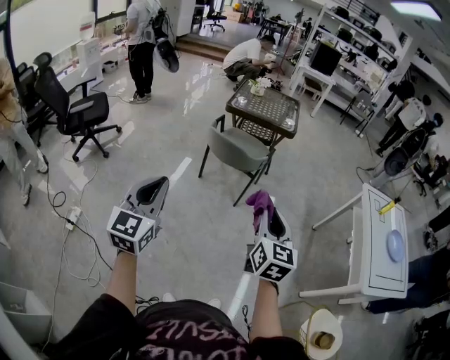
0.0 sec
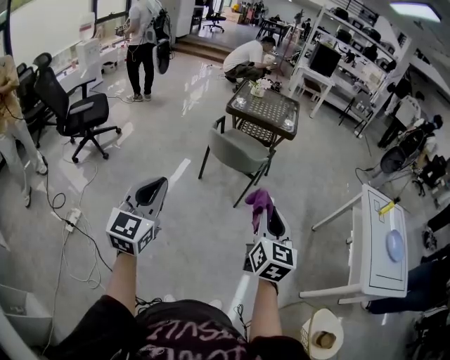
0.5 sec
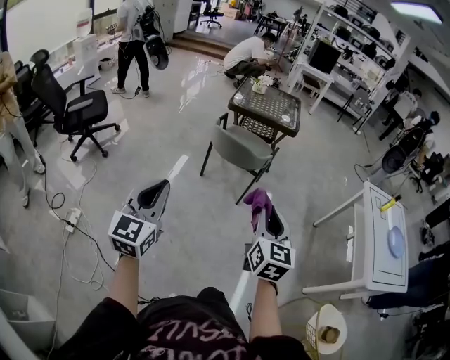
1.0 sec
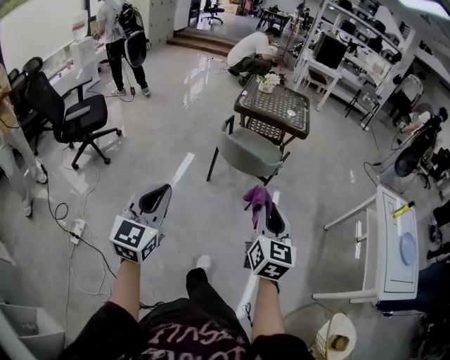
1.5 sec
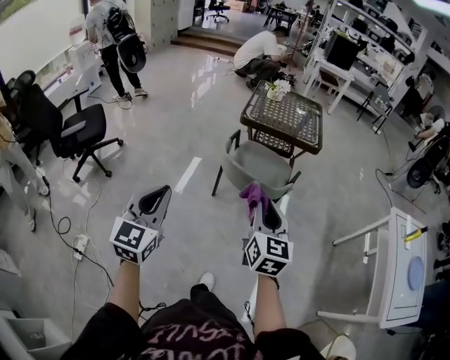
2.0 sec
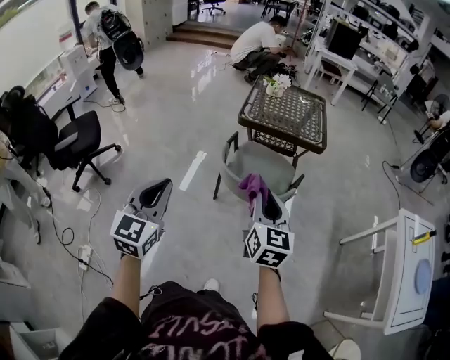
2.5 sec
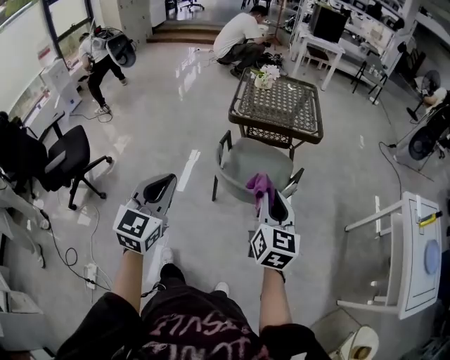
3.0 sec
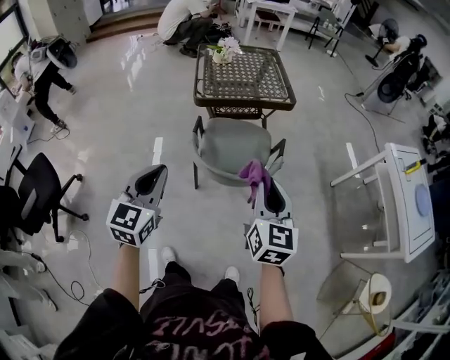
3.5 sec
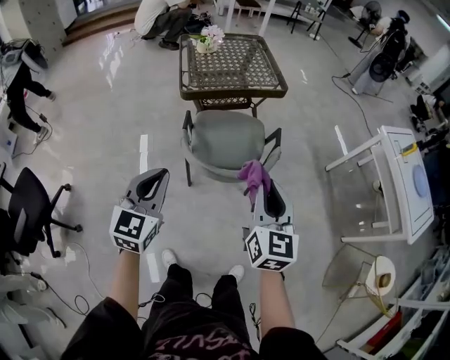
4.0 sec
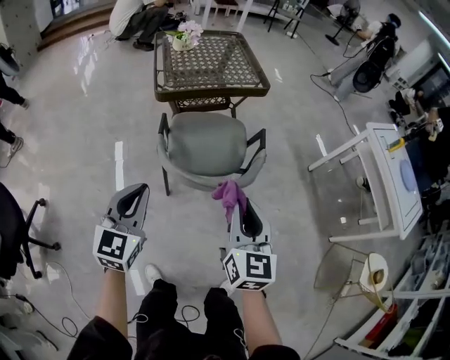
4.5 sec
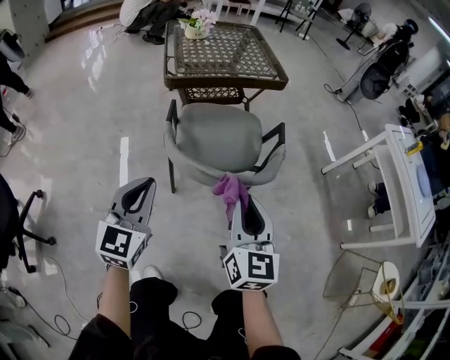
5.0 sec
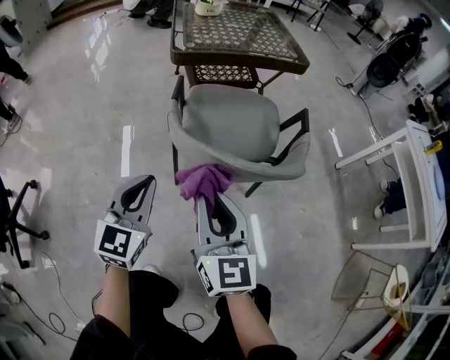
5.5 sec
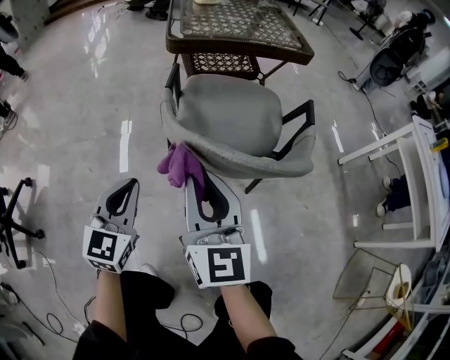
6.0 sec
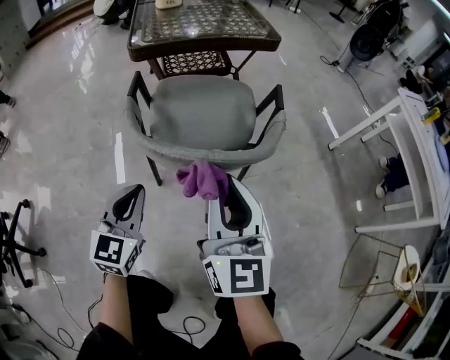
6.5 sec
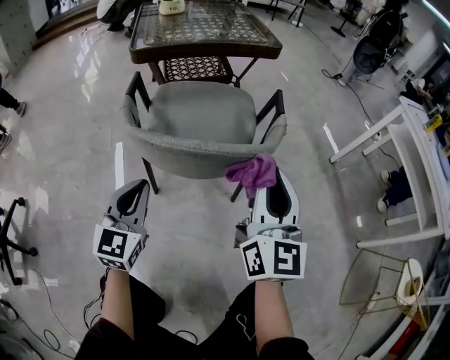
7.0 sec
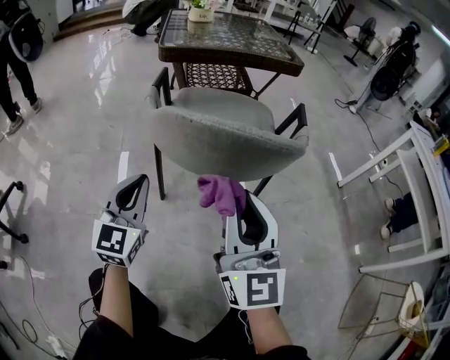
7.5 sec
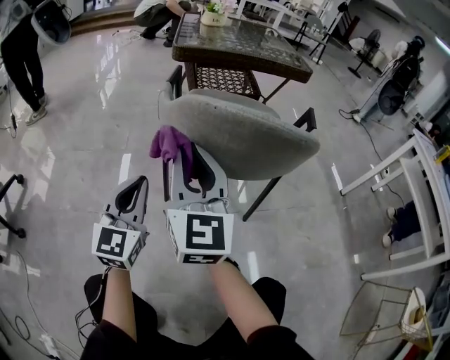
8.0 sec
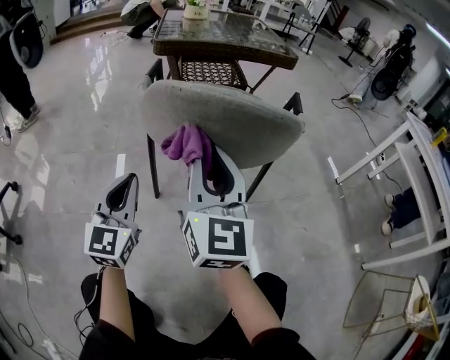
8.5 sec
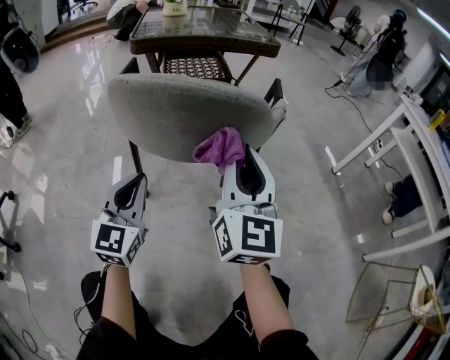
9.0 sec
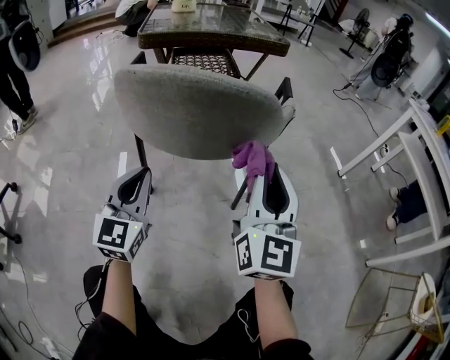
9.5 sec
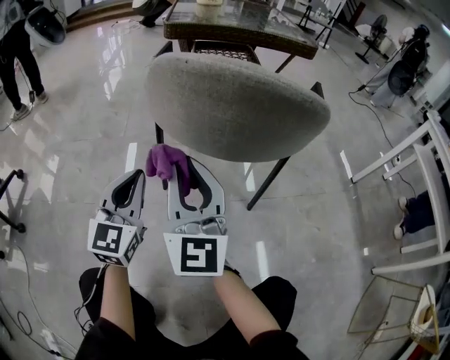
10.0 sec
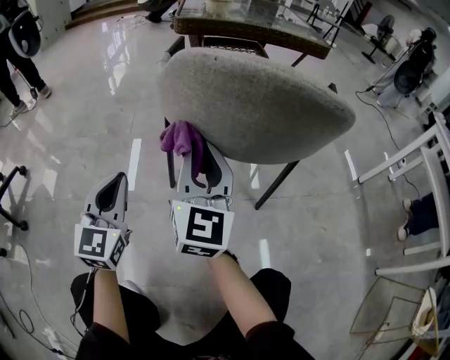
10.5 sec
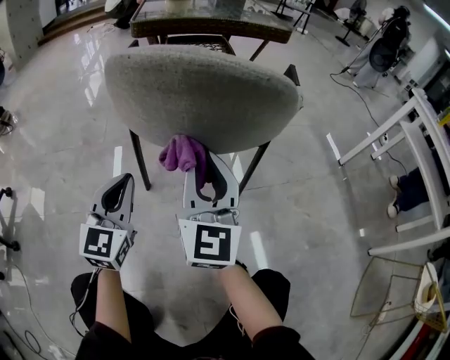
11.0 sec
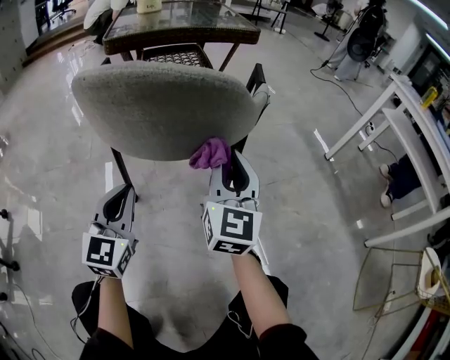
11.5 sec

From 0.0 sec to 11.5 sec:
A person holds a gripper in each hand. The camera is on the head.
From 0.0 sec to 2.0 sec: The grippers both shift forward and to the left by some 30 cm.
From 2.0 sec to 4.0 sec: The right gripper ends up approximately 20 cm from where it was, and swivels roughly 30 degrees. The left gripper moves about 35 cm, and rotates roughly 30 degrees.
From 4.0 sec to 6.0 sec: The right gripper moves downward and to the left, about 35 cm; the left gripper moves downward, approximately 35 cm.
From 6.0 sec to 7.5 sec: The left gripper is displaced to the right and downward by roughly 10 cm. Meanwhile the right gripper is displaced to the right by some 15 cm.
From 7.5 sec to 9.5 sec: The right gripper heads to the right and downward, covering some 15 cm, while the left gripper goes about 10 cm to the right and downward.
From 9.5 sec to 11.5 sec: The right gripper travels downward and forward by roughly 10 cm, and travels to the left and back again, about 25 cm each way; the left gripper travels to the left and back again, approximately 15 cm each way.

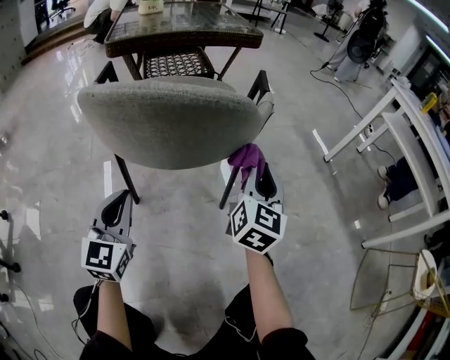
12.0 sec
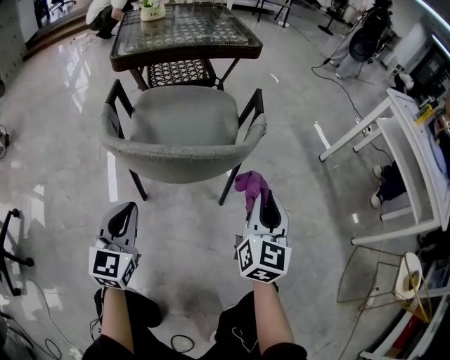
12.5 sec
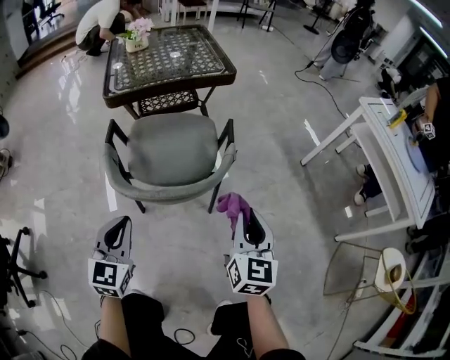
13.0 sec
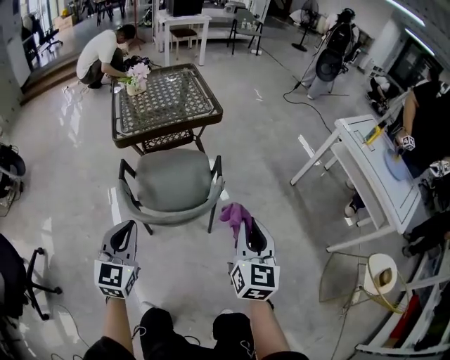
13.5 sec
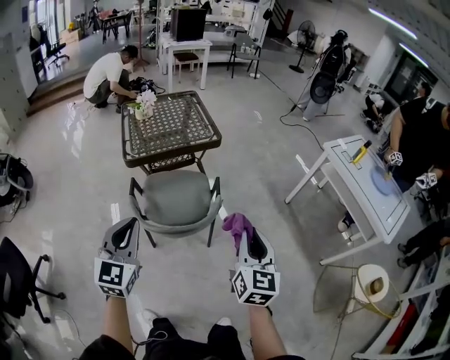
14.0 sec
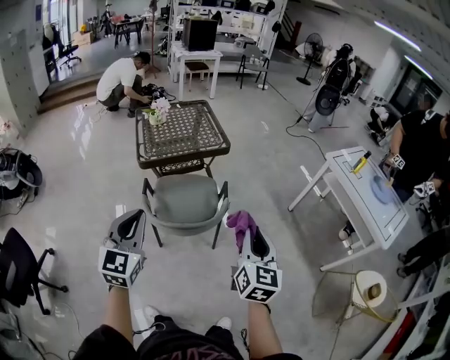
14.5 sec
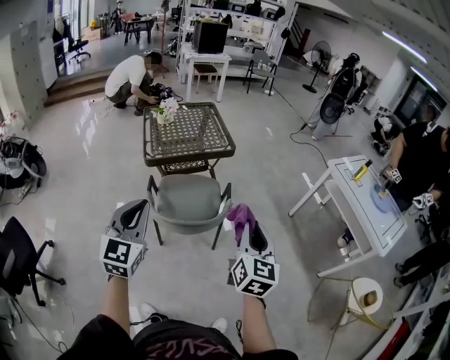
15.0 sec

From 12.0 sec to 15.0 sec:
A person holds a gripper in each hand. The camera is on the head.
From 12.0 sec to 13.5 sec: Both grippers move upward, approximately 40 cm.
From 13.5 sec to 15.0 sec: The right gripper travels upward and backward by about 20 cm. The left gripper moves upward, about 20 cm.

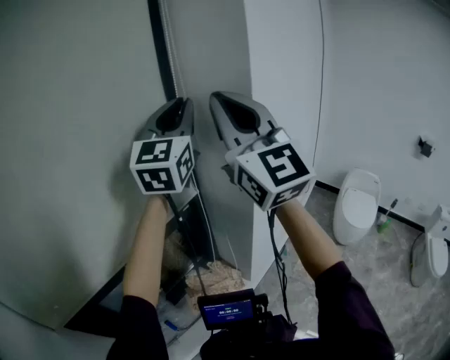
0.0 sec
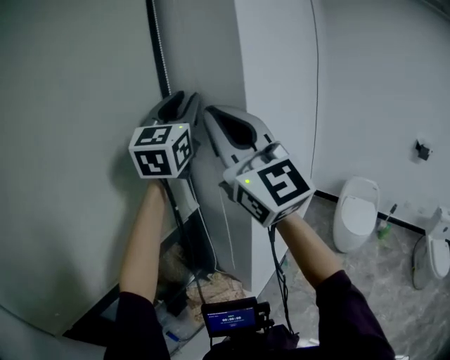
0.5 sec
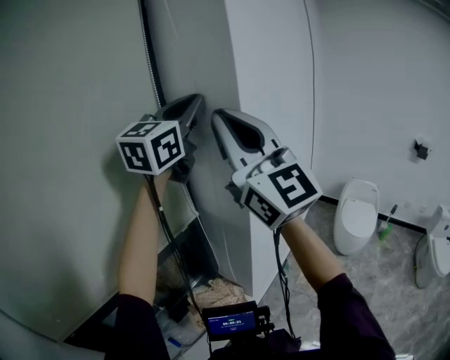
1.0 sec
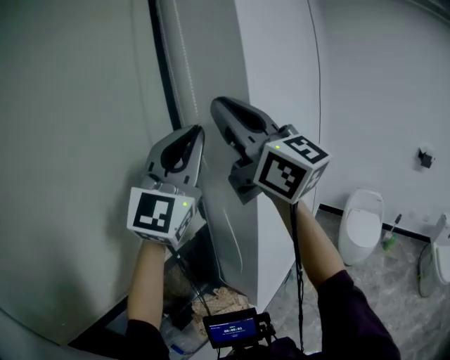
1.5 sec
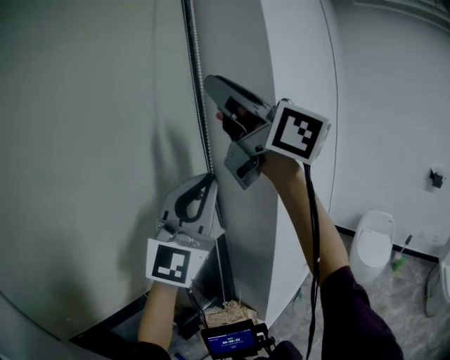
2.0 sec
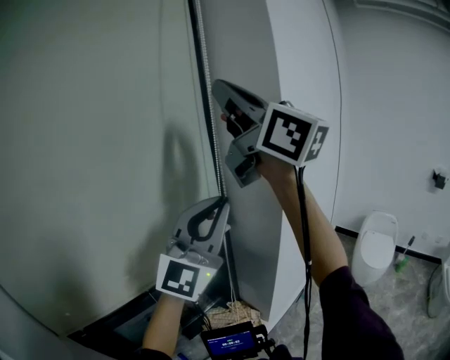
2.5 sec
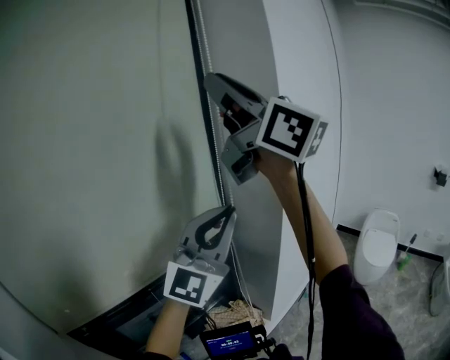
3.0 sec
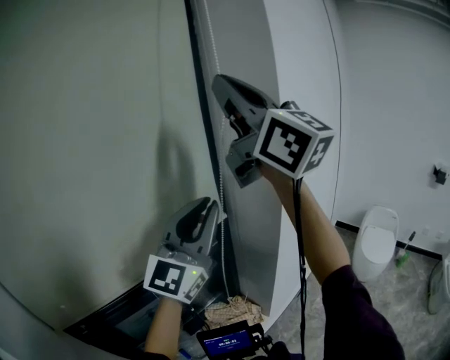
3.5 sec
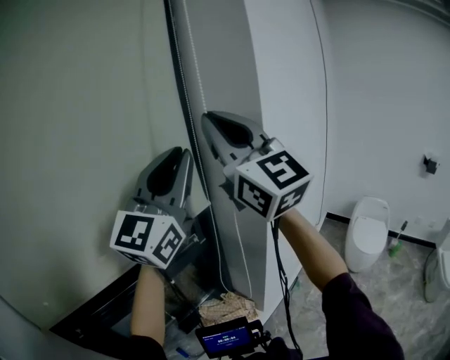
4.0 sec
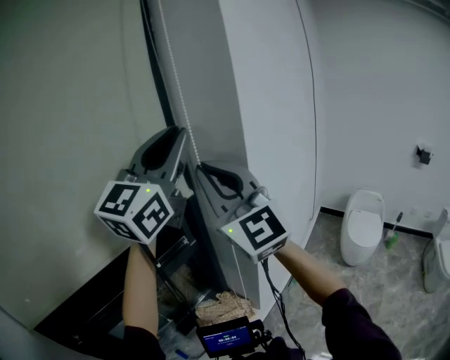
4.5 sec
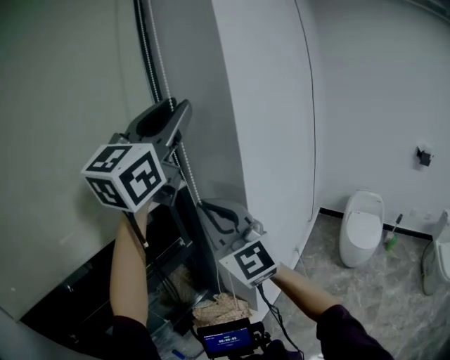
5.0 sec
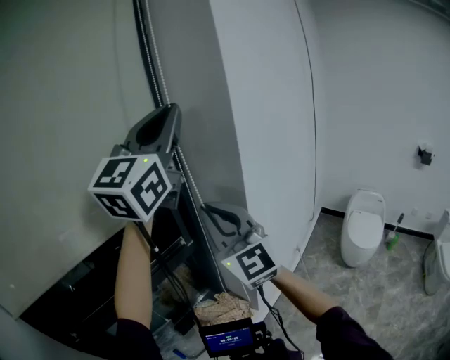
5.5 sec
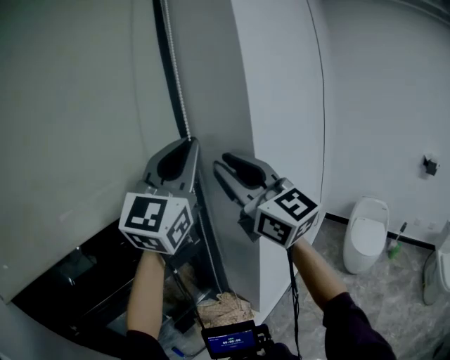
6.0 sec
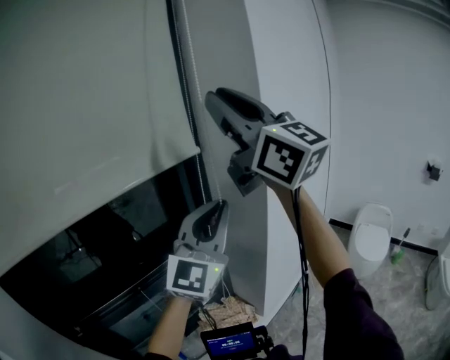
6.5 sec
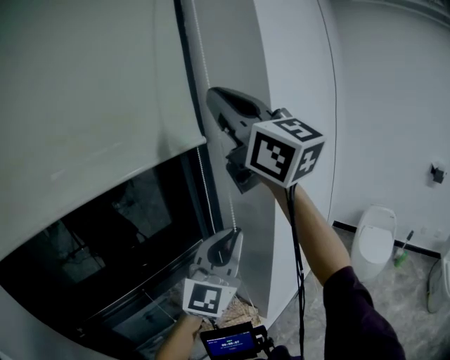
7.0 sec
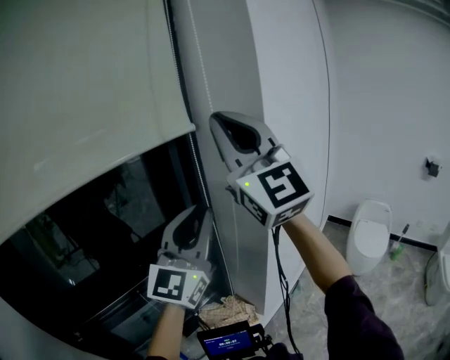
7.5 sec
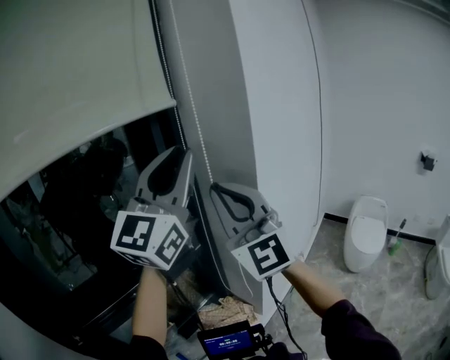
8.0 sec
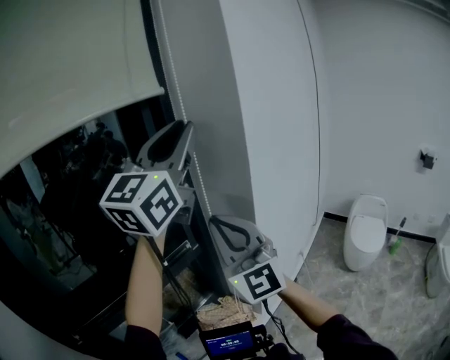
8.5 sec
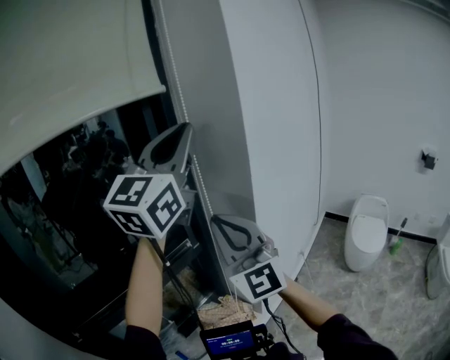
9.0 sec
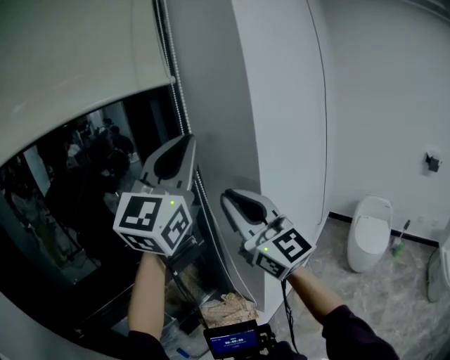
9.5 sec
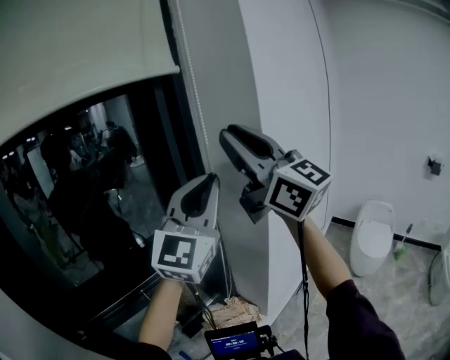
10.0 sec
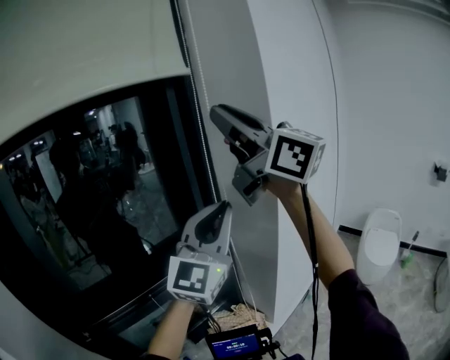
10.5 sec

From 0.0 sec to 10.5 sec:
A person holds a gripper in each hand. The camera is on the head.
From 0.0 sec to 2.0 sec: The right gripper is displaced upward and to the left by some 15 cm, and rotates roughly 40 degrees. Meanwhile the left gripper shifts some 15 cm backward, and changes its angle by approximately 20 degrees.
From 2.0 sec to 4.0 sec: The right gripper heads downward, covering some 5 cm, and swivels approximately 30 degrees, while the left gripper moves upward, some 5 cm.
From 4.0 sec to 6.5 sec: The left gripper moves downward and to the right, some 10 cm; the right gripper reaches approximately 20 cm downward, then returns.
From 6.5 sec to 8.5 sec: The left gripper heads upward, covering roughly 15 cm. Meanwhile the right gripper shifts some 25 cm downward, and changes its angle by about 30 degrees.
From 8.5 sec to 10.5 sec: The right gripper goes roughly 25 cm upward, and rotates roughly 40 degrees; the left gripper moves downward, about 15 cm.

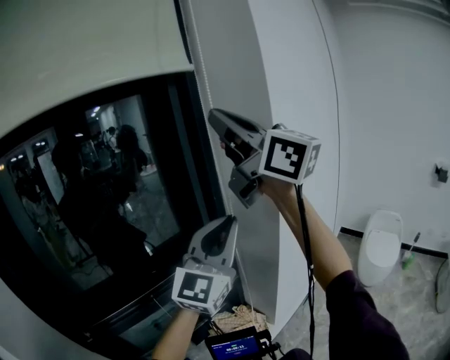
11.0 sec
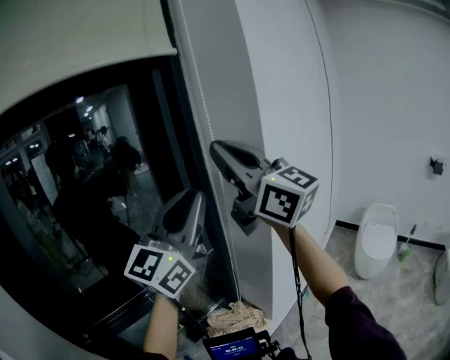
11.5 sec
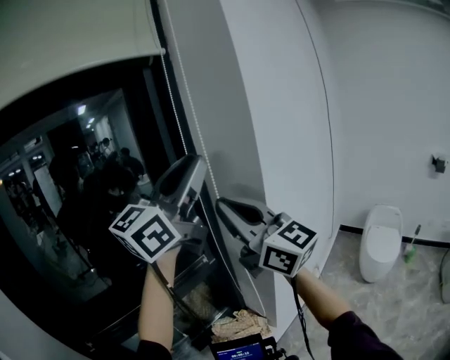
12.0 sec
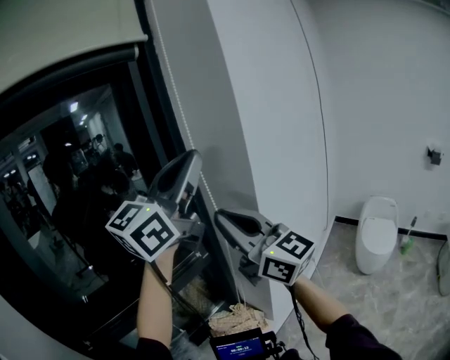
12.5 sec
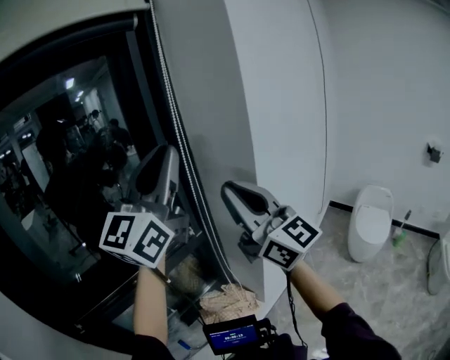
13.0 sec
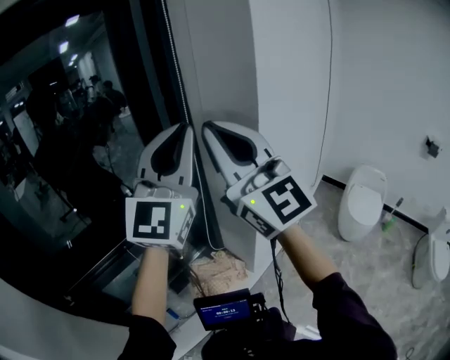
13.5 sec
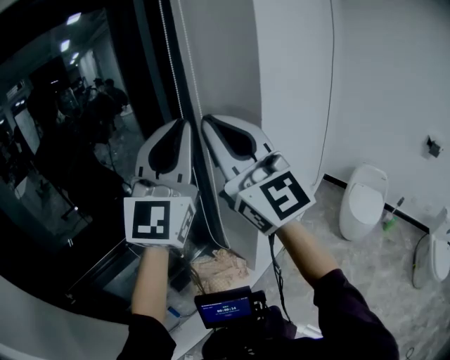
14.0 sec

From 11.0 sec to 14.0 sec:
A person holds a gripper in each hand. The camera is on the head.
From 11.0 sec to 12.5 sec: The left gripper moves upward, about 15 cm, and swivels some 30 degrees; the right gripper heads downward, covering roughly 20 cm.
From 12.5 sec to 14.0 sec: The left gripper is displaced downward by about 5 cm, and swivels some 40 degrees, while the right gripper shifts some 5 cm upward, and changes its angle by about 20 degrees.
